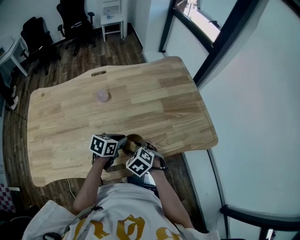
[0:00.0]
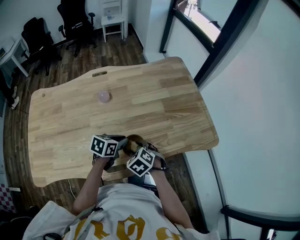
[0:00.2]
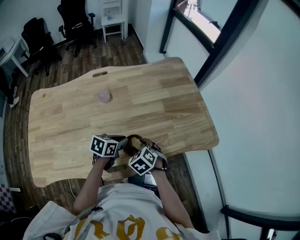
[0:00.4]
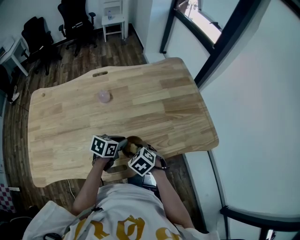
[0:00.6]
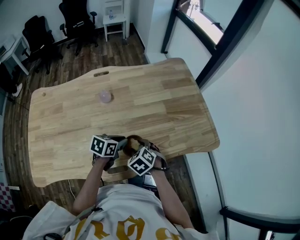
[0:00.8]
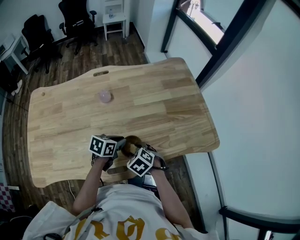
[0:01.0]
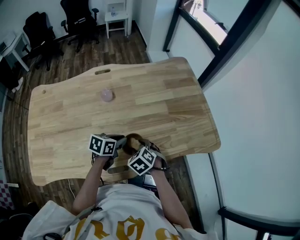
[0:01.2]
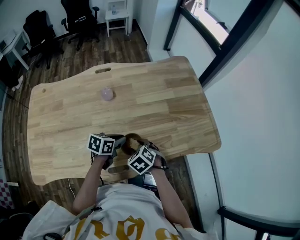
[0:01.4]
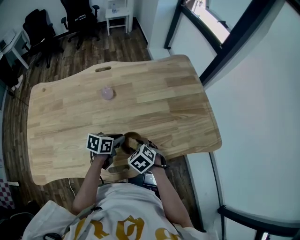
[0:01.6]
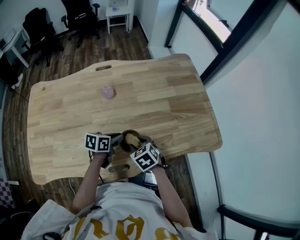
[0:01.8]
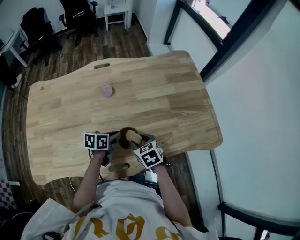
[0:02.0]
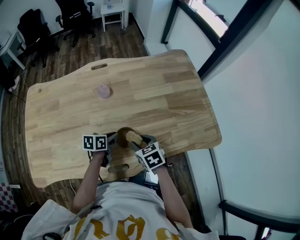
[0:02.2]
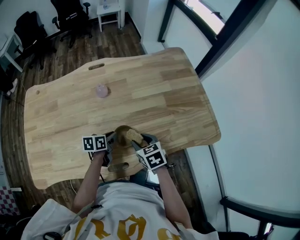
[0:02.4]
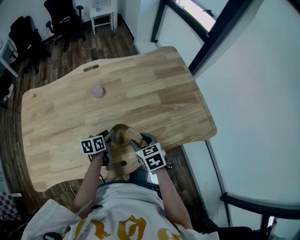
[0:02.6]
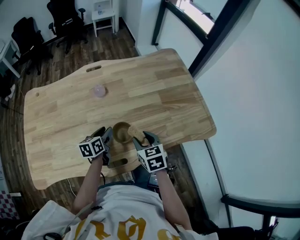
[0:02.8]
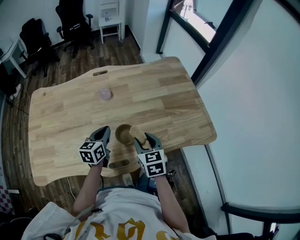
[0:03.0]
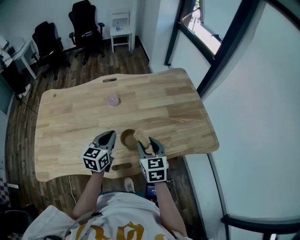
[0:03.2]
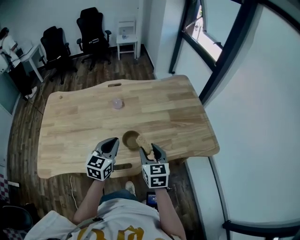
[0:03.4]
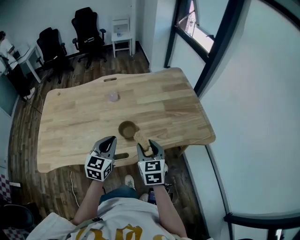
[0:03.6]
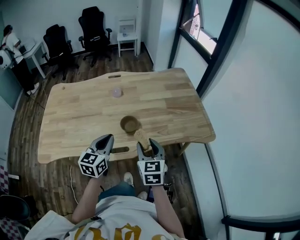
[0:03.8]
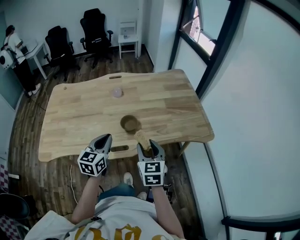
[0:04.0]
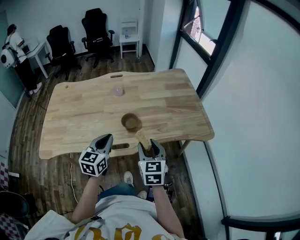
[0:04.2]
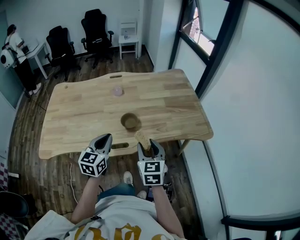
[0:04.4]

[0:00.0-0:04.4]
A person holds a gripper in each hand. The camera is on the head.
0:00.0 to 0:01.4: The grippers move only a little.
0:01.4 to 0:03.0: The left gripper heads upward and to the left, covering about 10 cm, swivels roughly 30 degrees, and opens and closes again. Meanwhile the right gripper shifts some 10 cm upward, and points its fingers some 30 degrees further upward.
0:03.0 to 0:04.4: The right gripper shifts roughly 20 cm backward, while the left gripper travels backward and upward by roughly 25 cm.

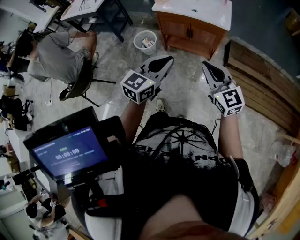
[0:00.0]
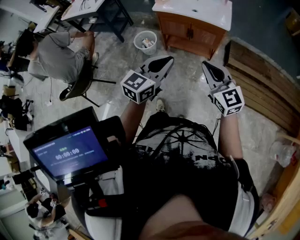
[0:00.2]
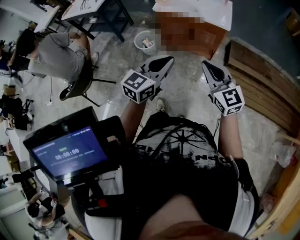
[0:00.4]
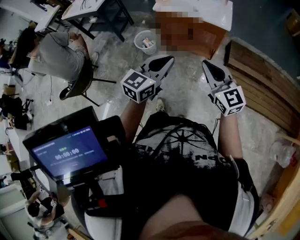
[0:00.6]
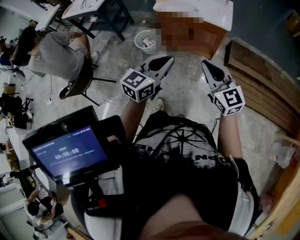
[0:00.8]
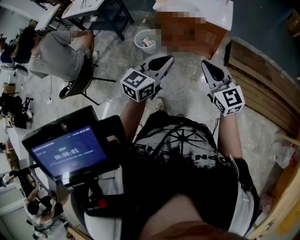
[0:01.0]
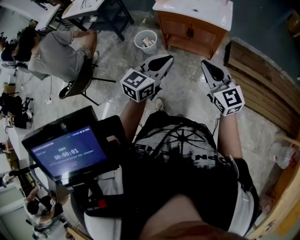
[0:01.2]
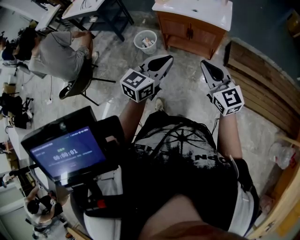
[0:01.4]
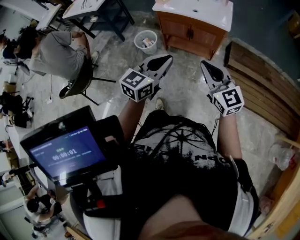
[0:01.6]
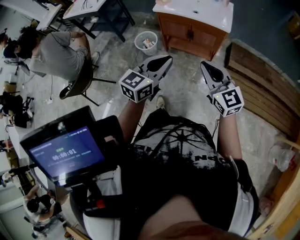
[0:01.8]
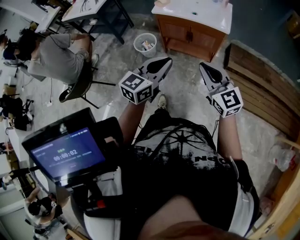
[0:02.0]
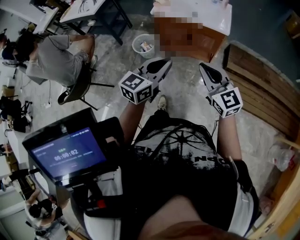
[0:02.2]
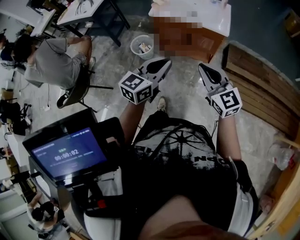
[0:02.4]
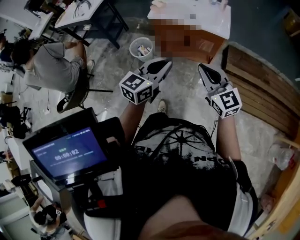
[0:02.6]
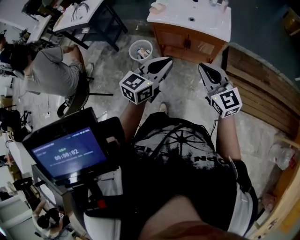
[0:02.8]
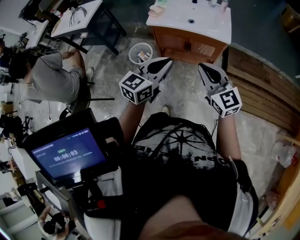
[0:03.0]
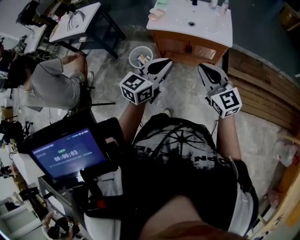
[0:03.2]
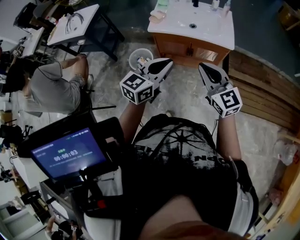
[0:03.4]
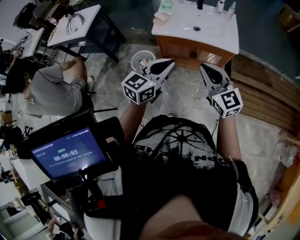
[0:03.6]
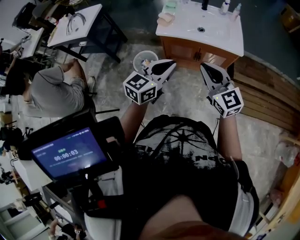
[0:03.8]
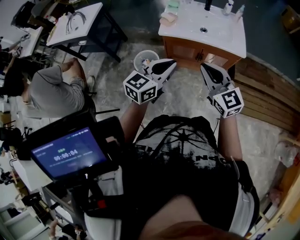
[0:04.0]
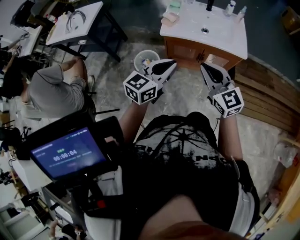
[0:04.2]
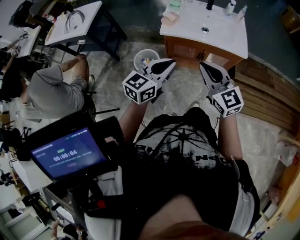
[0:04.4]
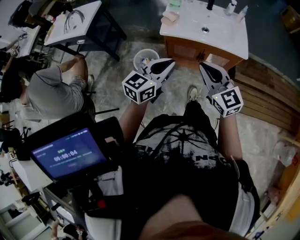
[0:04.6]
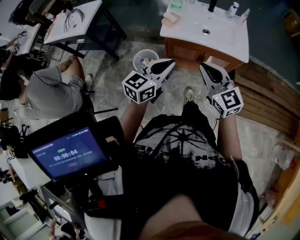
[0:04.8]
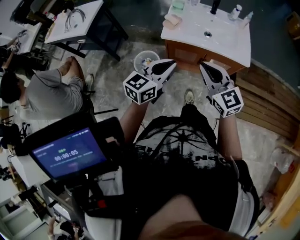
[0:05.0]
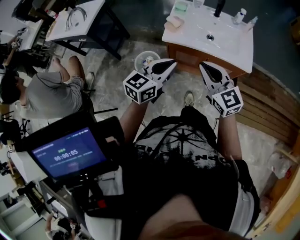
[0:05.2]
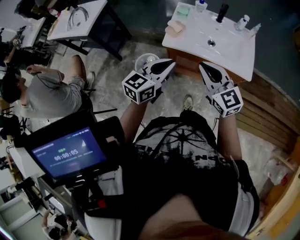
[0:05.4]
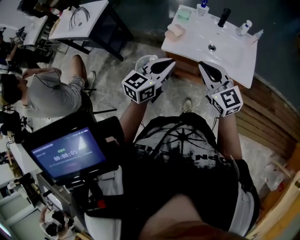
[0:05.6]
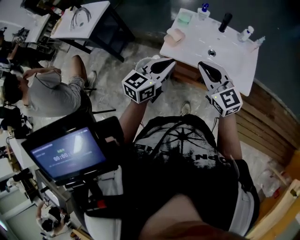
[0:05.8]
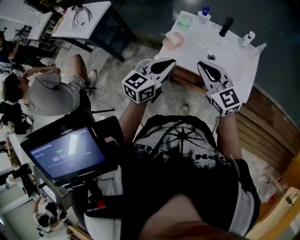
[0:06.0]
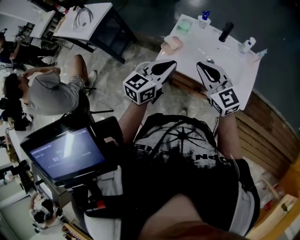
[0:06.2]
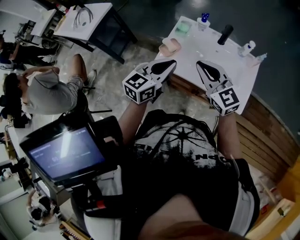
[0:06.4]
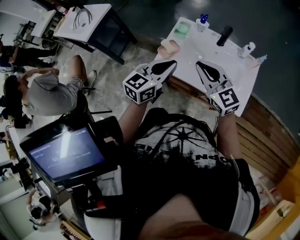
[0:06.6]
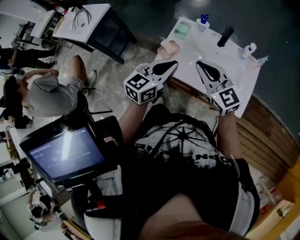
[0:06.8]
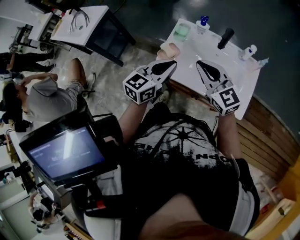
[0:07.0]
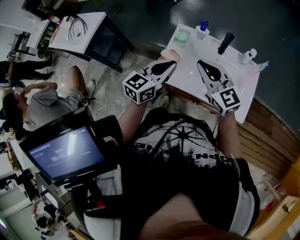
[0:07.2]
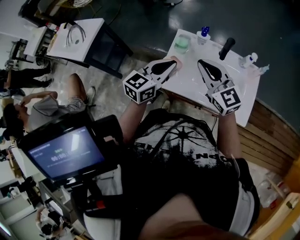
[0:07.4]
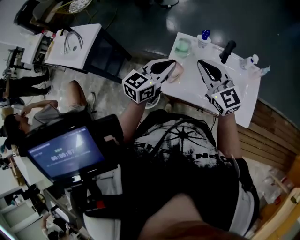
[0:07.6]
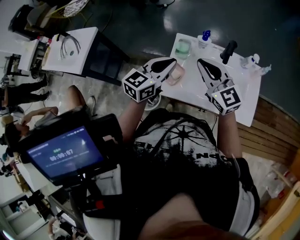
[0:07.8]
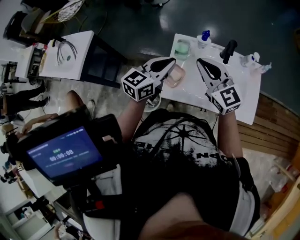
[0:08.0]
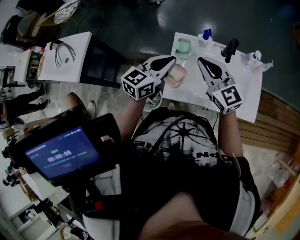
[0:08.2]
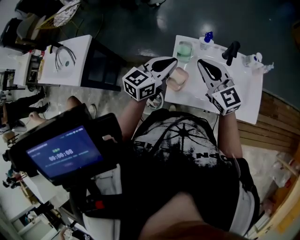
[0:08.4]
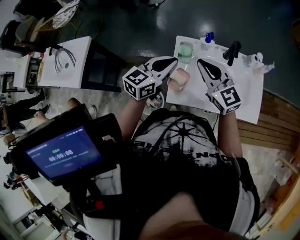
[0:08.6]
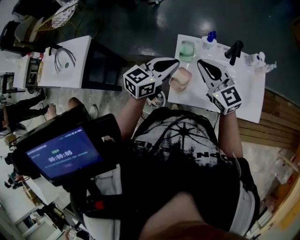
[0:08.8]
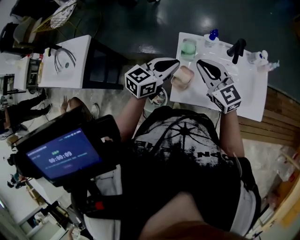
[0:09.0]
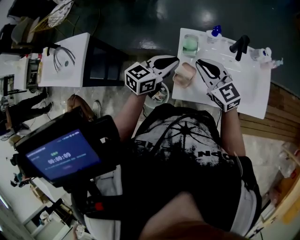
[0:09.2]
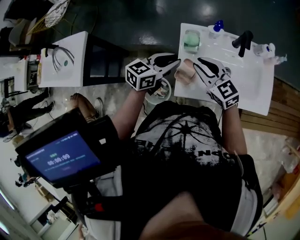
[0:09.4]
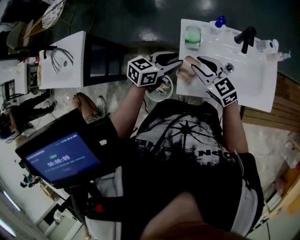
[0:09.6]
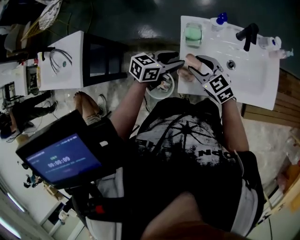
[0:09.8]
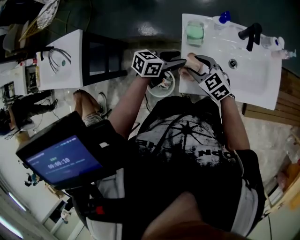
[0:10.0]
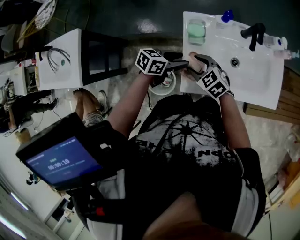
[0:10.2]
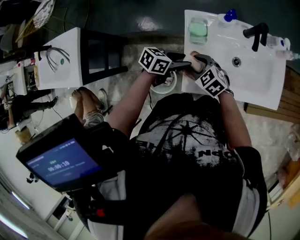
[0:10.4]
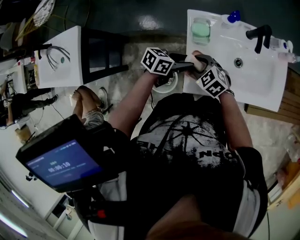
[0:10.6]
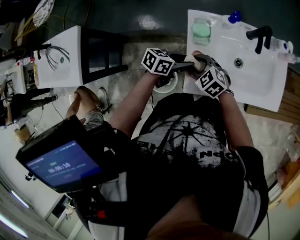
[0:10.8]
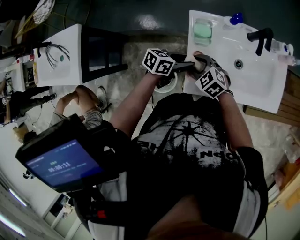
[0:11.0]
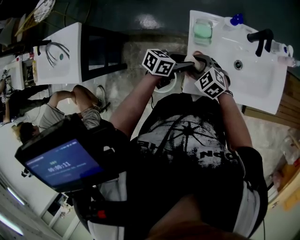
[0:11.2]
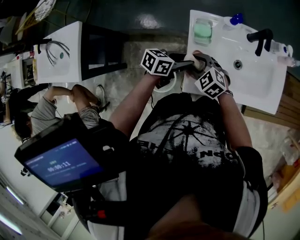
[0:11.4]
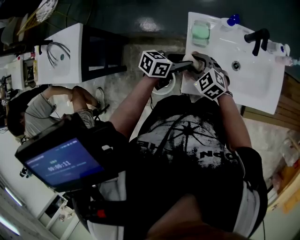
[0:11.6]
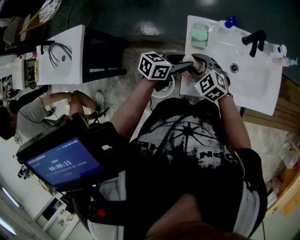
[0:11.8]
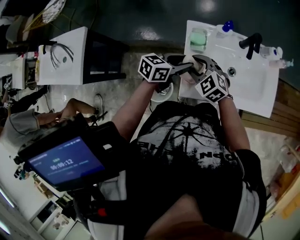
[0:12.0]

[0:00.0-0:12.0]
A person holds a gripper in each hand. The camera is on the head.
0:00.0 to 0:01.6: The two grippers keep their place.
0:01.6 to 0:03.0: Both grippers move forward, roughly 15 cm.
0:03.0 to 0:04.4: The two grippers go approximately 15 cm to the left and forward.
0:04.4 to 0:06.0: Both grippers move forward, about 25 cm.
0:06.0 to 0:07.6: Both grippers move forward, approximately 20 cm.
0:07.6 to 0:09.0: The right gripper heads to the left, forward and downward, covering some 10 cm. The left gripper shifts approximately 10 cm forward, downward and to the left.
0:09.0 to 0:10.4: Both grippers travel together downward, approximately 20 cm. The right gripper points its fingers approximately 30 degrees further downward, and opens its fingers. The left gripper changes its angle by approximately 40 degrees, and opens up.
0:10.4 to 0:12.0: The two grippers go about 5 cm upward.

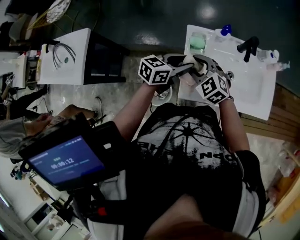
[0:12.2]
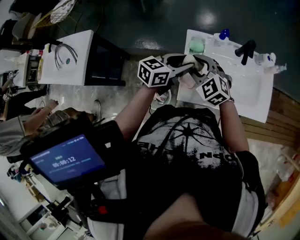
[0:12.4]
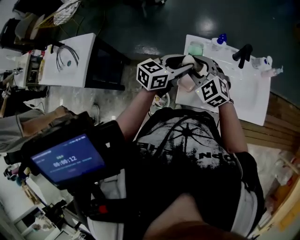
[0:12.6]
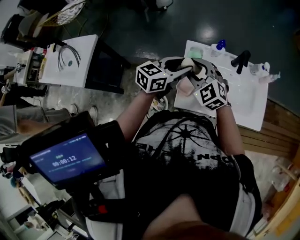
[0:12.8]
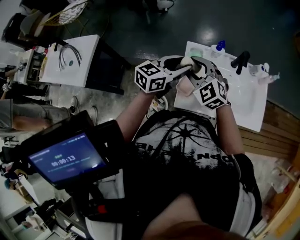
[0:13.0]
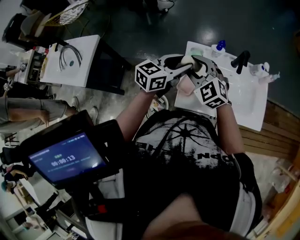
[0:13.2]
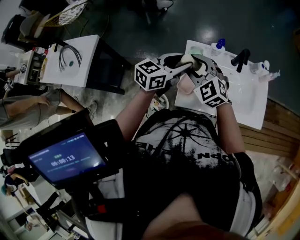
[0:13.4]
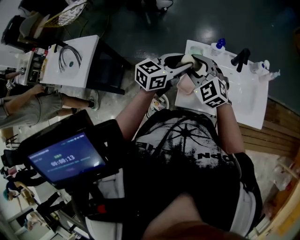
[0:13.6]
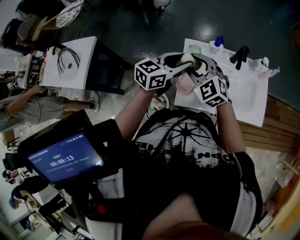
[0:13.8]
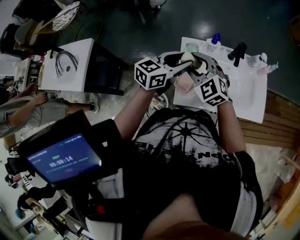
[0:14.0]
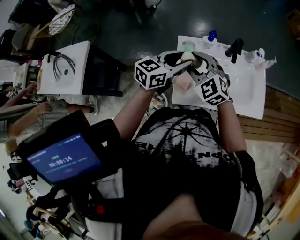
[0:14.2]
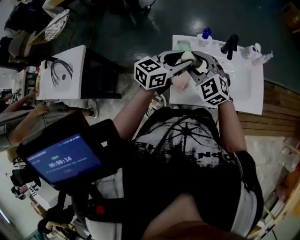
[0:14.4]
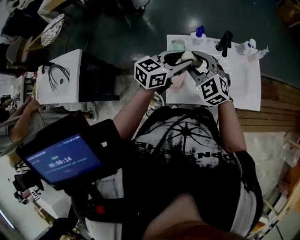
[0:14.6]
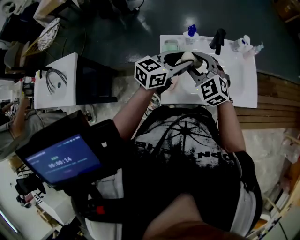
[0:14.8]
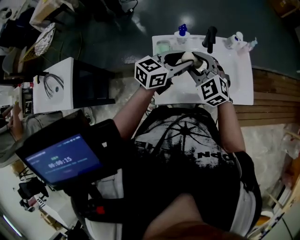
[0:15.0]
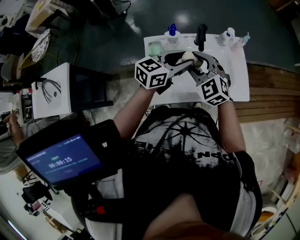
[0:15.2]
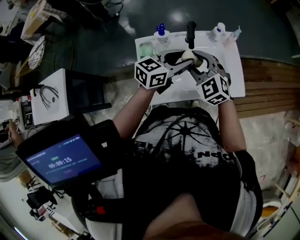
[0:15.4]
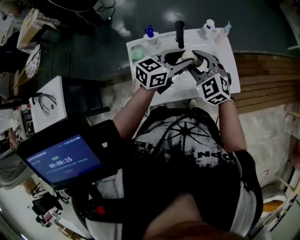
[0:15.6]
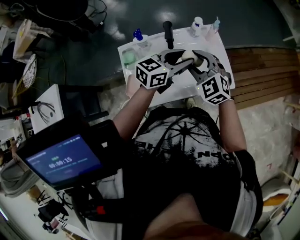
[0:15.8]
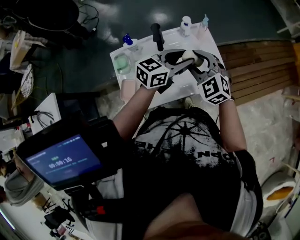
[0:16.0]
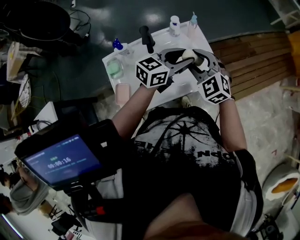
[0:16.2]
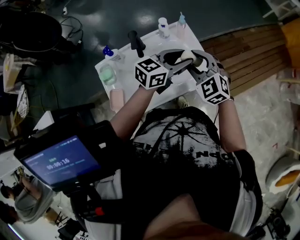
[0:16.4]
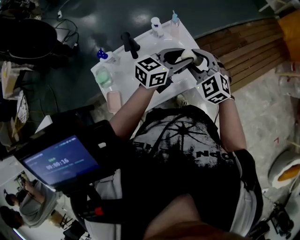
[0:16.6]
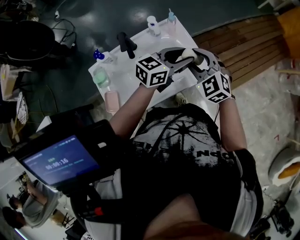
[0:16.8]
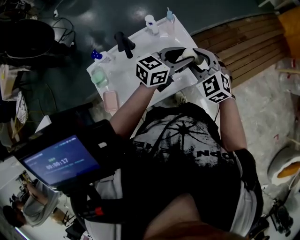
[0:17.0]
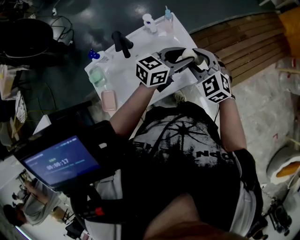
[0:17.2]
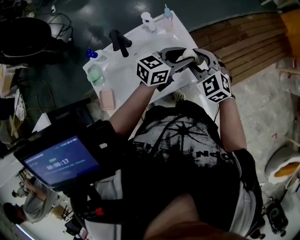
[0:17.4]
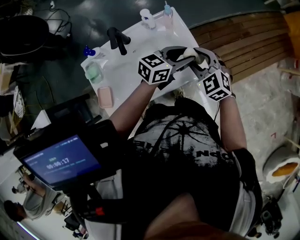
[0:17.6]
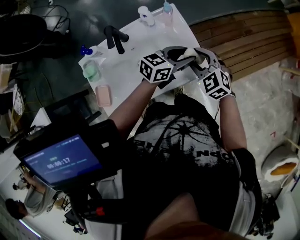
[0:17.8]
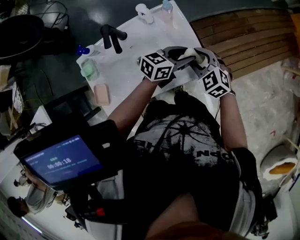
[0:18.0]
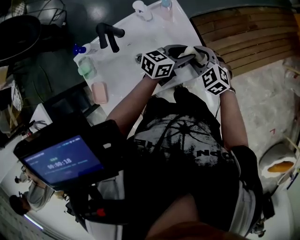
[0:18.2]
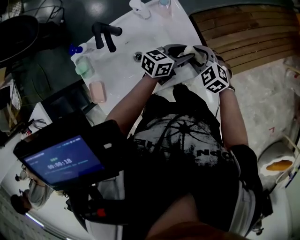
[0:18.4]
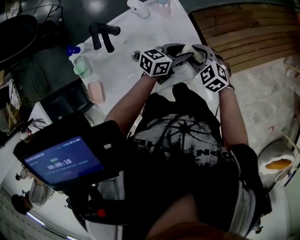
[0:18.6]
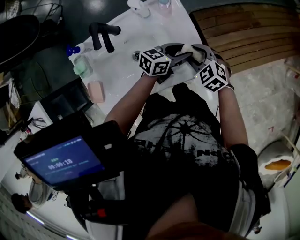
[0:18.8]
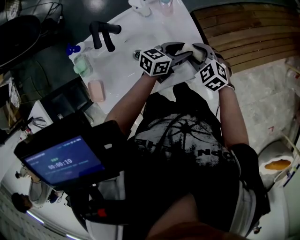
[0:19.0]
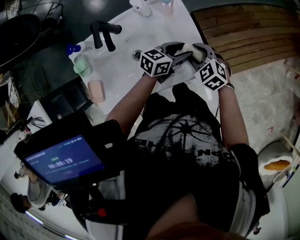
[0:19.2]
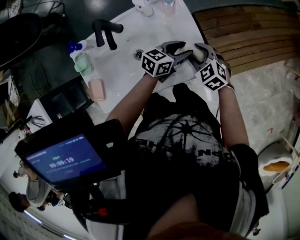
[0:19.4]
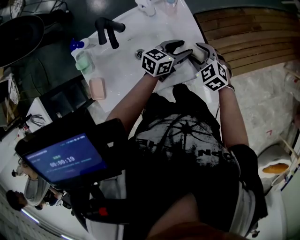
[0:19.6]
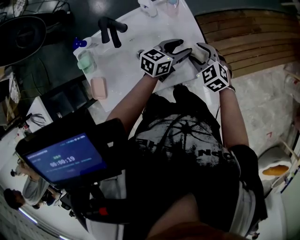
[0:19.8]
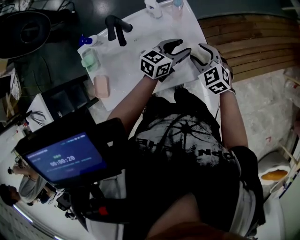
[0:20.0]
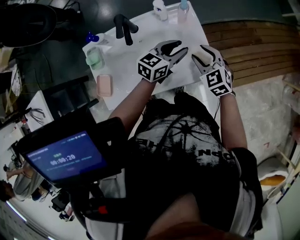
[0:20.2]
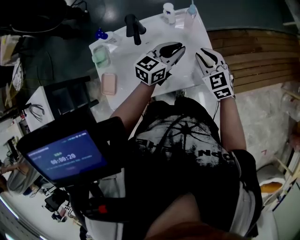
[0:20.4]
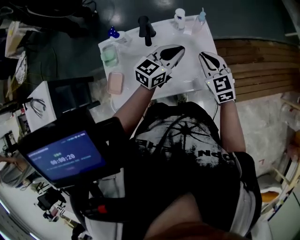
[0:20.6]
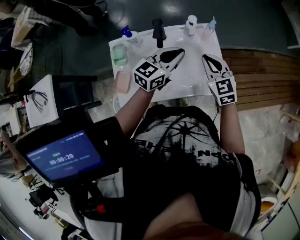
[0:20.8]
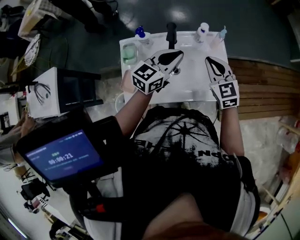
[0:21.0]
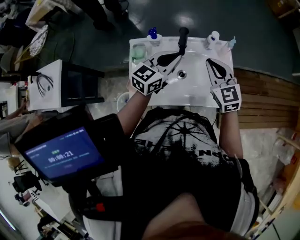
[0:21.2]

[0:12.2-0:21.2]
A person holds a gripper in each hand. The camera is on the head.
0:12.2 to 0:13.8: Both grippers travel together upward, roughly 10 cm.
0:13.8 to 0:15.2: The two grippers go some 20 cm to the right.
0:15.2 to 0:16.6: Both grippers move to the right, approximately 25 cm. The right gripper turns by approximately 20 degrees. Meanwhile the left gripper rotates about 20 degrees.
0:16.6 to 0:18.2: The two grippers go approximately 15 cm downward and to the right.
0:19.8 to 0:21.2: The right gripper travels upward and to the left by roughly 25 cm, rotates about 30 degrees, and closes its fingers, while the left gripper goes some 30 cm to the left and upward, turns by roughly 30 degrees, and closes.
